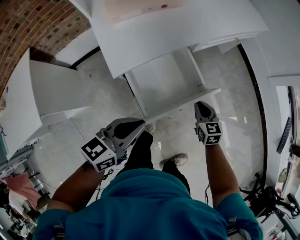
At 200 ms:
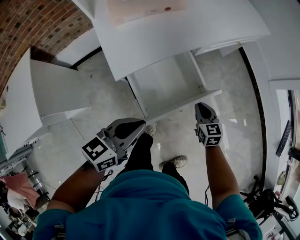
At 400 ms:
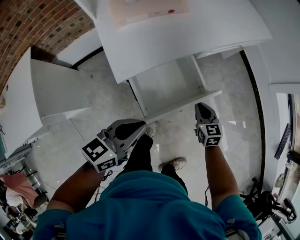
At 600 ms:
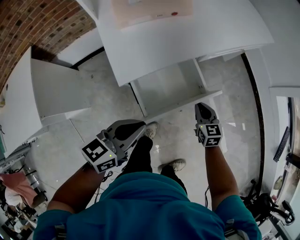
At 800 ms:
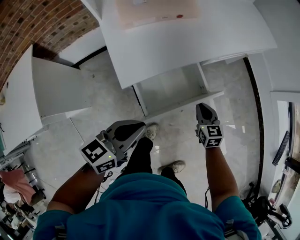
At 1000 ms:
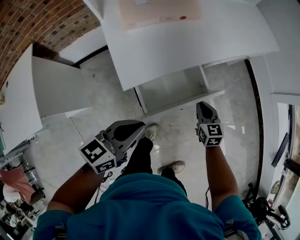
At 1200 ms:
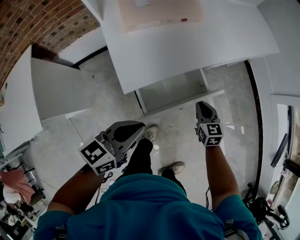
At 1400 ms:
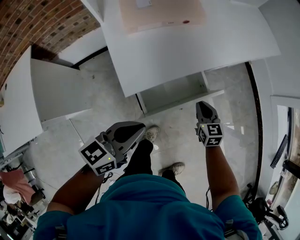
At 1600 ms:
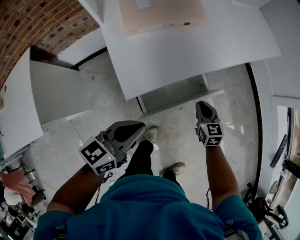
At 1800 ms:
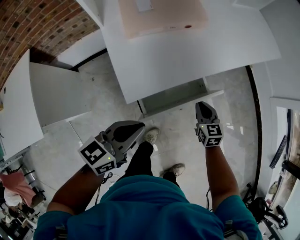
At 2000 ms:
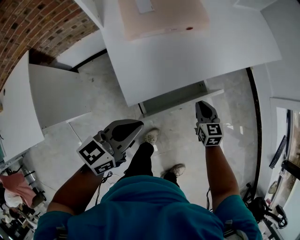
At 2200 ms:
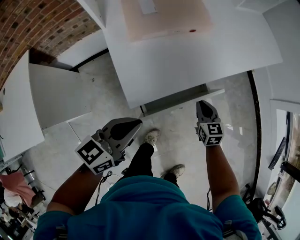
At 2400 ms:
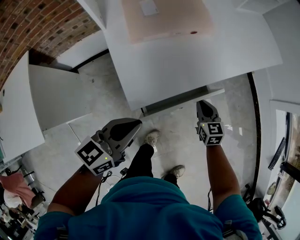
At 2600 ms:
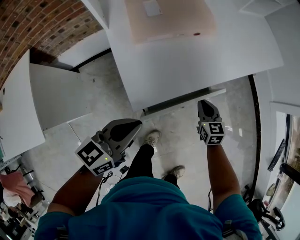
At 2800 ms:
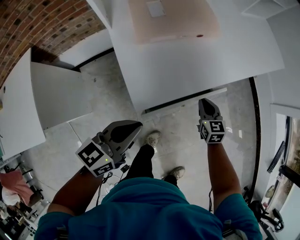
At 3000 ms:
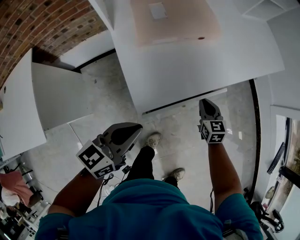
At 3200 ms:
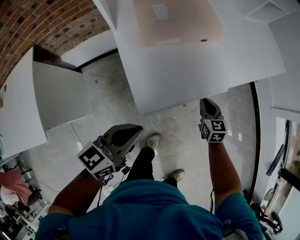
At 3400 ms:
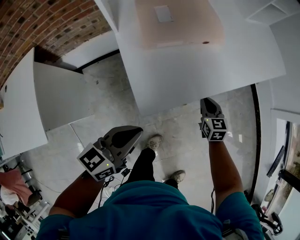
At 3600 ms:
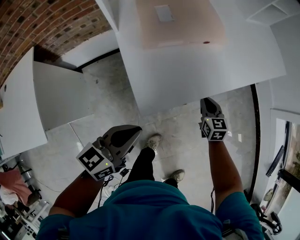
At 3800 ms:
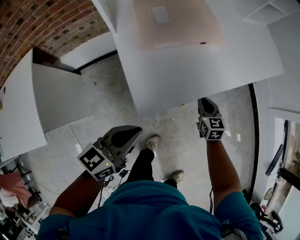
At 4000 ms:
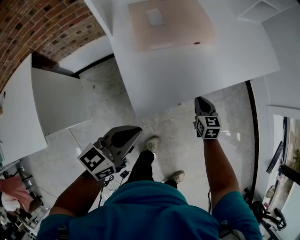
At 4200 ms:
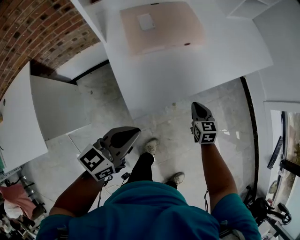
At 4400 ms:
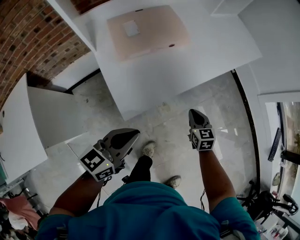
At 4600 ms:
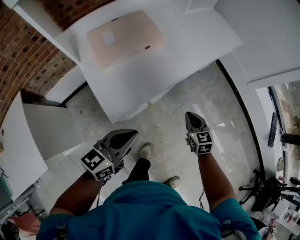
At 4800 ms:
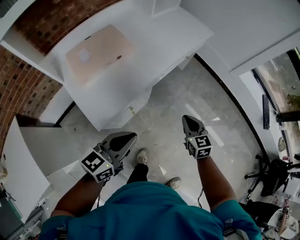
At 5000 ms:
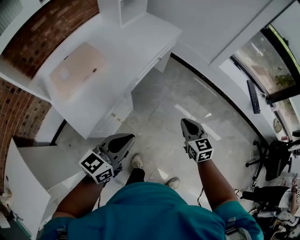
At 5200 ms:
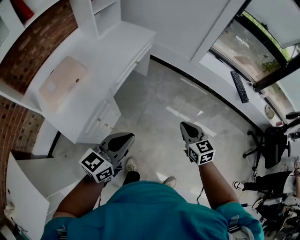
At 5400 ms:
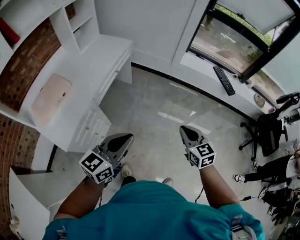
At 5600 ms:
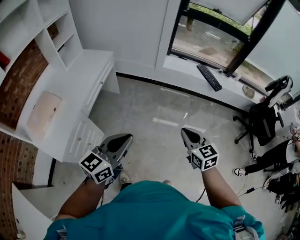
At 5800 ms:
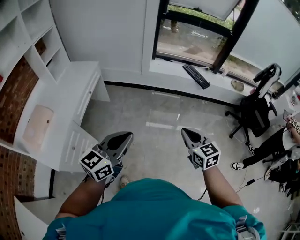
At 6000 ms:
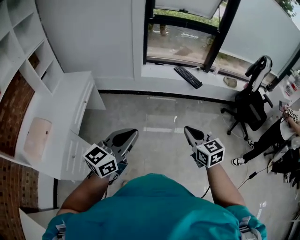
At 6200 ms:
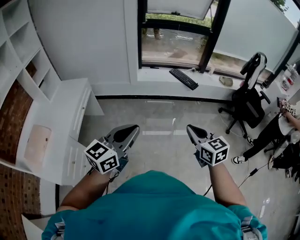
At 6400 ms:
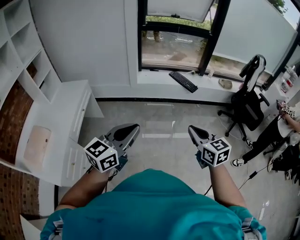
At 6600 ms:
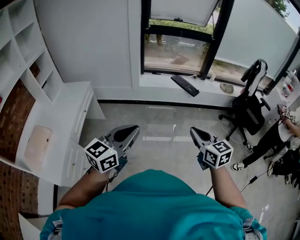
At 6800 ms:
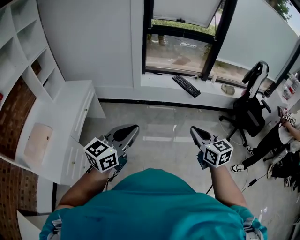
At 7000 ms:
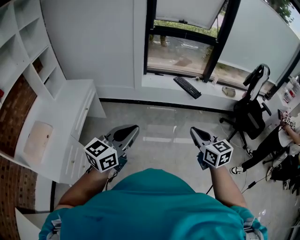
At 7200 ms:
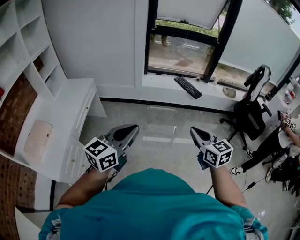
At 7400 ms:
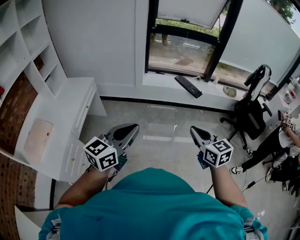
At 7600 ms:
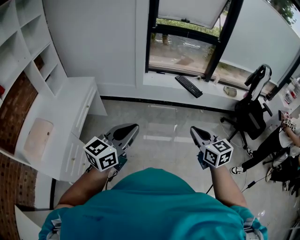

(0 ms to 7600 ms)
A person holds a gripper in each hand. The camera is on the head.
0 ms - 1600 ms: The left gripper goes about 10 cm to the left and forward. Meanwhile the right gripper is displaced forward and to the left by about 10 cm.
1600 ms - 3000 ms: The right gripper is displaced forward by about 5 cm, while the left gripper moves to the left, about 5 cm.
3000 ms - 4600 ms: The left gripper is displaced to the right by some 10 cm, while the right gripper heads to the right, backward and upward, covering some 15 cm.
4600 ms - 6000 ms: The pair of grippers is taken some 50 cm. The right gripper swivels about 40 degrees; the left gripper swivels about 50 degrees.
6000 ms - 7600 ms: The right gripper shifts by about 5 cm.

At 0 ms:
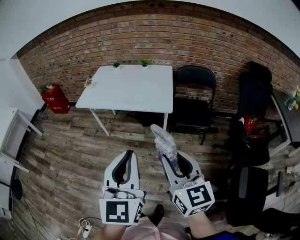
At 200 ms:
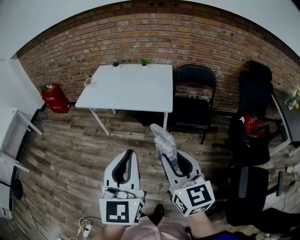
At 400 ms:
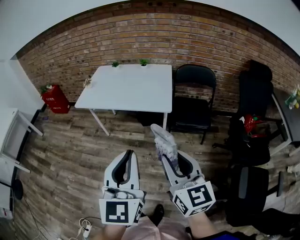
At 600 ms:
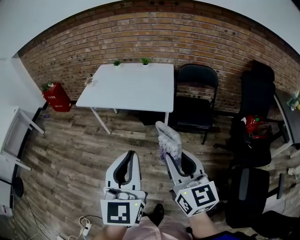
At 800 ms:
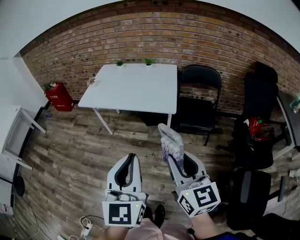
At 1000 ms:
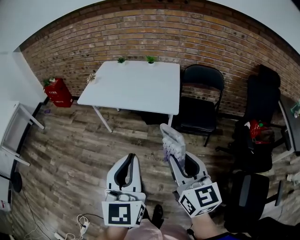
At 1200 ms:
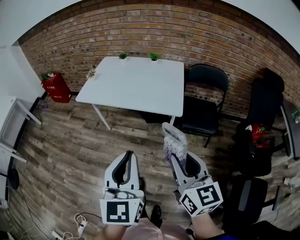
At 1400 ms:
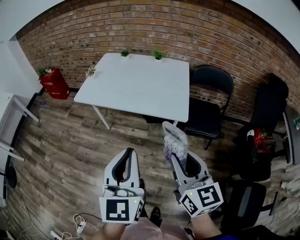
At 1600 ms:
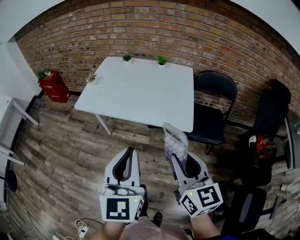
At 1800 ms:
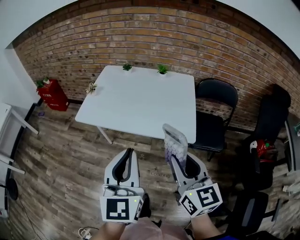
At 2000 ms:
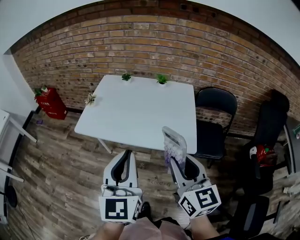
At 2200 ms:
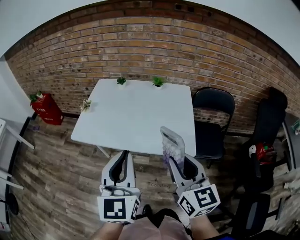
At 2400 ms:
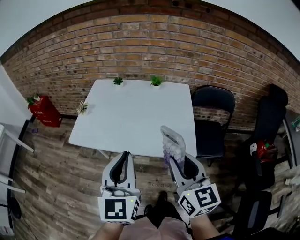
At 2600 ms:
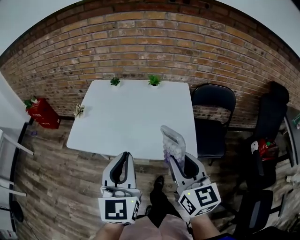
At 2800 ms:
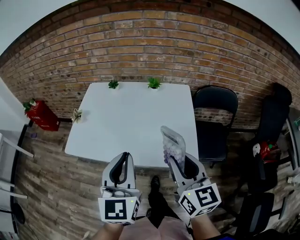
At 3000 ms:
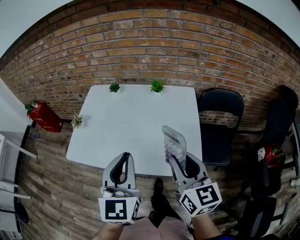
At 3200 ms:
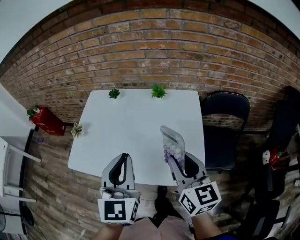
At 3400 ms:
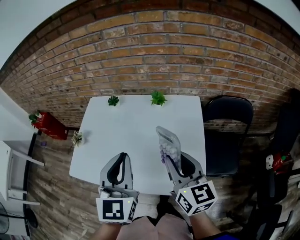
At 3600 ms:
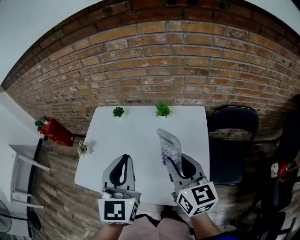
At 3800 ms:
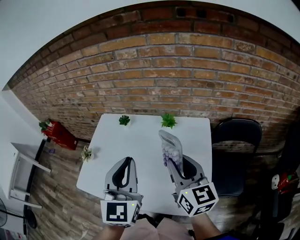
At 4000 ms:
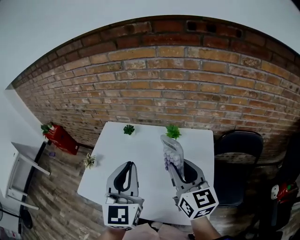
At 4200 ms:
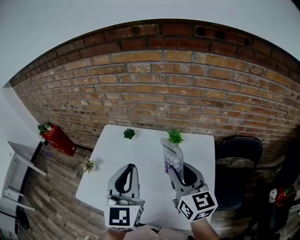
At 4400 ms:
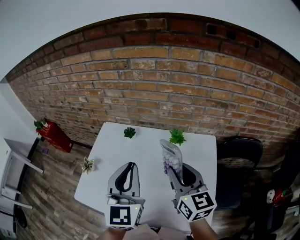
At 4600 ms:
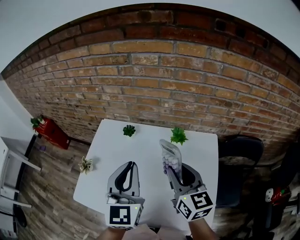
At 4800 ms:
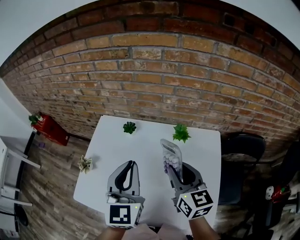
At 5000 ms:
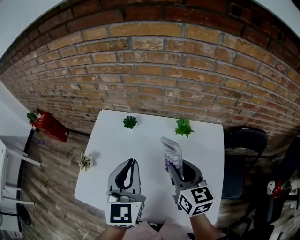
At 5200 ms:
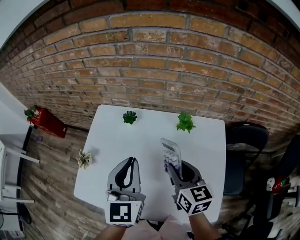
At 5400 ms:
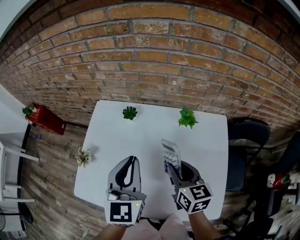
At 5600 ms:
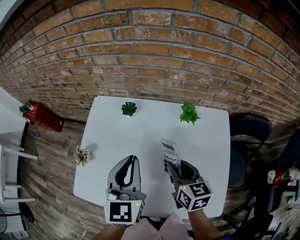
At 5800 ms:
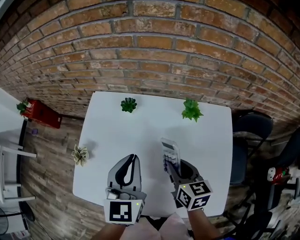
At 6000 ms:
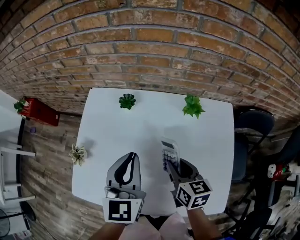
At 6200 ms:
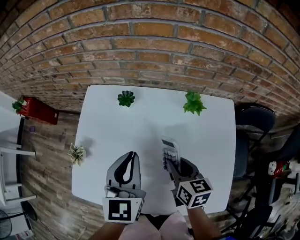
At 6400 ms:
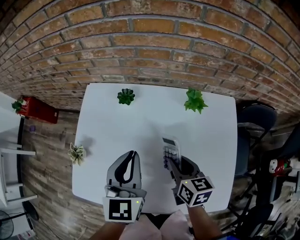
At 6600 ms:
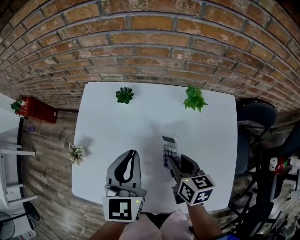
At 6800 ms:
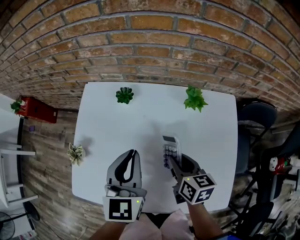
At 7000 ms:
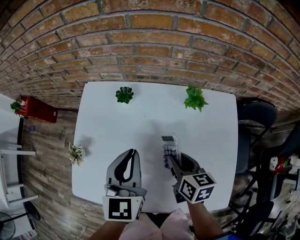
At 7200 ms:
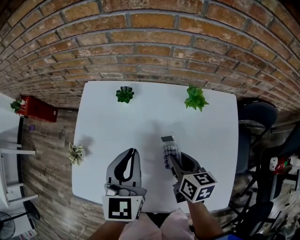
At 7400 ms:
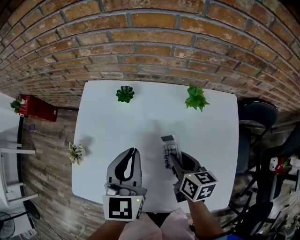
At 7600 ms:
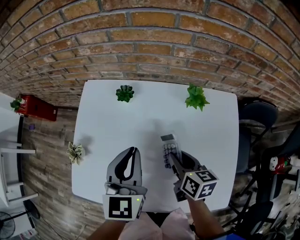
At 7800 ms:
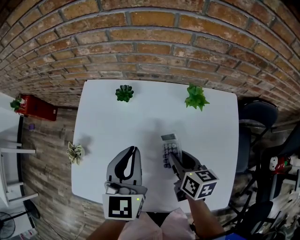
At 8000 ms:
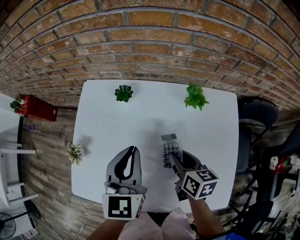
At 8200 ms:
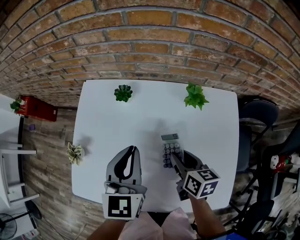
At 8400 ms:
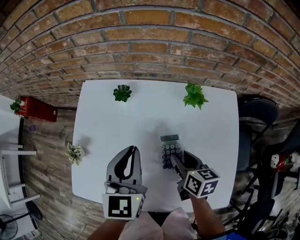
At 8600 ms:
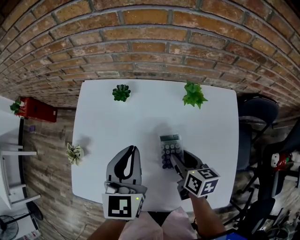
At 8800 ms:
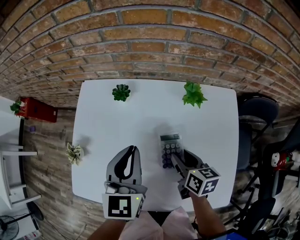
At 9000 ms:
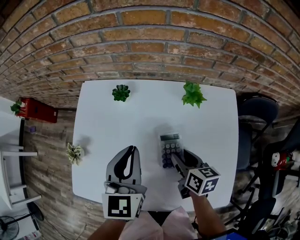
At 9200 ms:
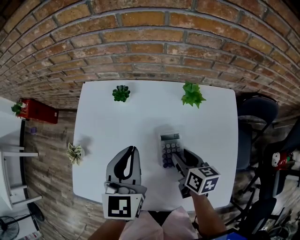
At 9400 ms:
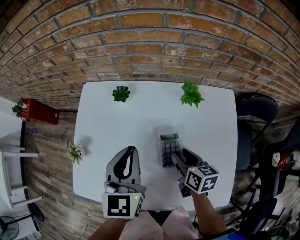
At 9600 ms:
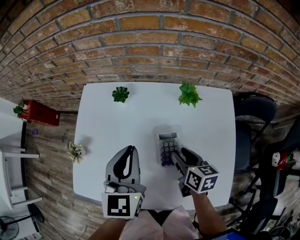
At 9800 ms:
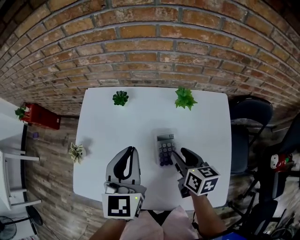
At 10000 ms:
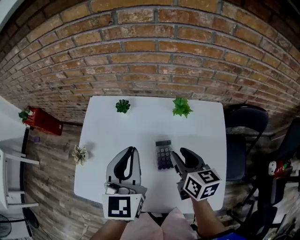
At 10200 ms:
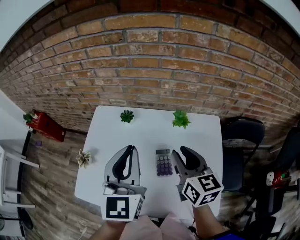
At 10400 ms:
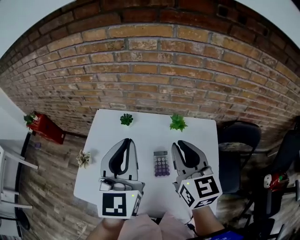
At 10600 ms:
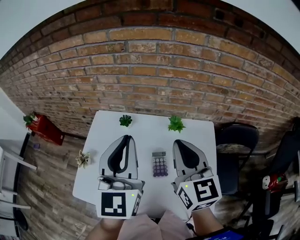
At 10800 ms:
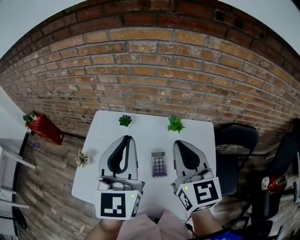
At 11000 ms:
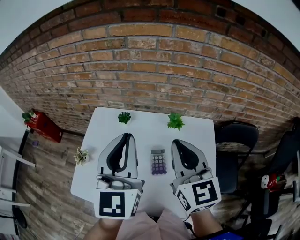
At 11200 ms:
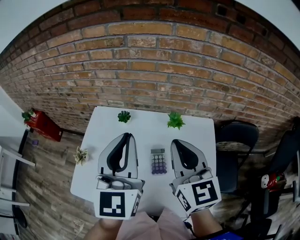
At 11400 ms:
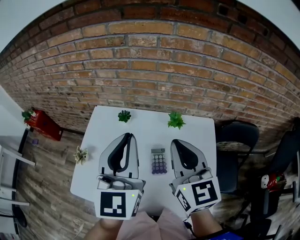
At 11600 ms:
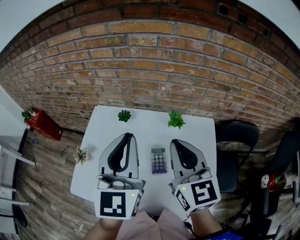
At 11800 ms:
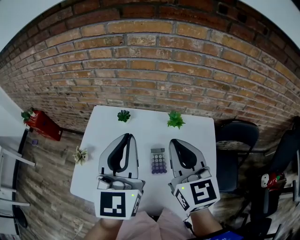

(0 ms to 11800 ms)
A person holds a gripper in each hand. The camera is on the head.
0 ms - 1400 ms: The two grippers go about 15 cm forward.
1400 ms - 3000 ms: Both grippers move forward, about 35 cm.
3000 ms - 4400 ms: Both grippers travel together forward, roughly 25 cm.
4400 ms - 6000 ms: The left gripper moves downward and forward, roughly 15 cm; the right gripper moves downward, roughly 20 cm, and rotates about 30 degrees.
6000 ms - 8800 ms: The grippers move only a little.
8800 ms - 10400 ms: The grippers both shift upward by about 25 cm. The right gripper rotates some 40 degrees, and closes. Meanwhile the left gripper swivels about 20 degrees.
10400 ms - 11800 ms: The grippers make only small movements.

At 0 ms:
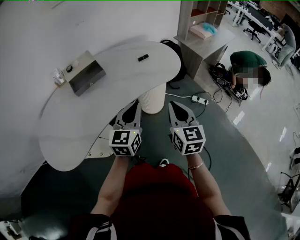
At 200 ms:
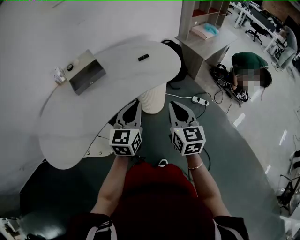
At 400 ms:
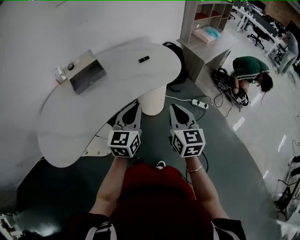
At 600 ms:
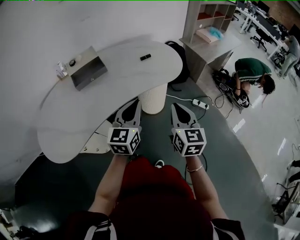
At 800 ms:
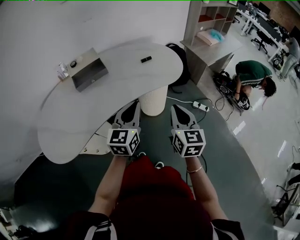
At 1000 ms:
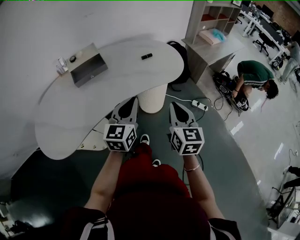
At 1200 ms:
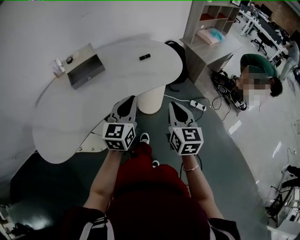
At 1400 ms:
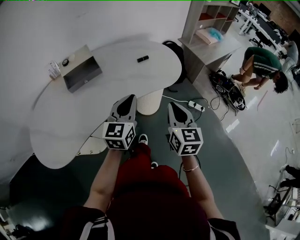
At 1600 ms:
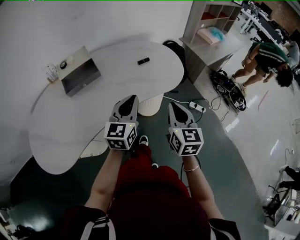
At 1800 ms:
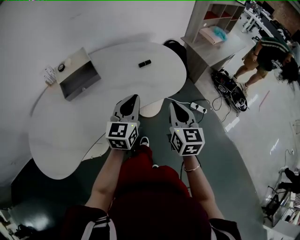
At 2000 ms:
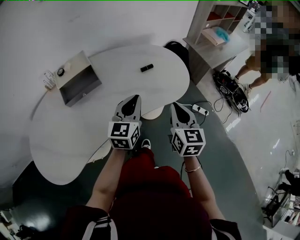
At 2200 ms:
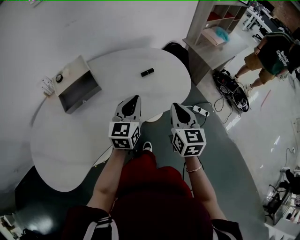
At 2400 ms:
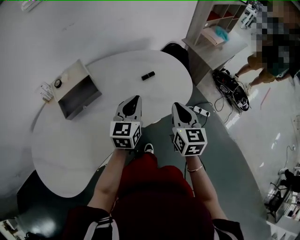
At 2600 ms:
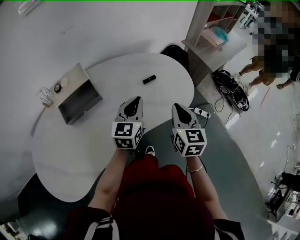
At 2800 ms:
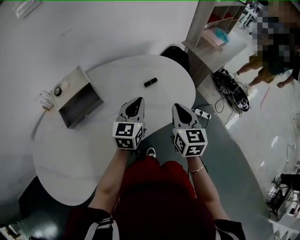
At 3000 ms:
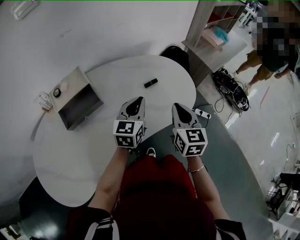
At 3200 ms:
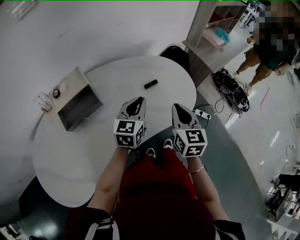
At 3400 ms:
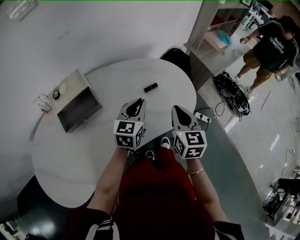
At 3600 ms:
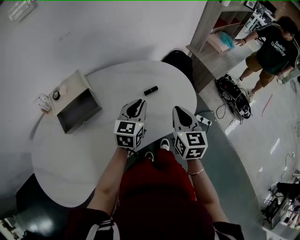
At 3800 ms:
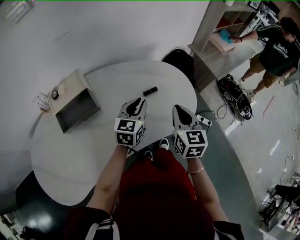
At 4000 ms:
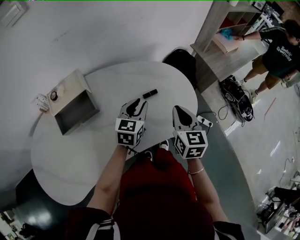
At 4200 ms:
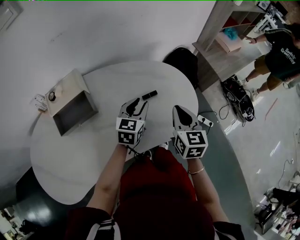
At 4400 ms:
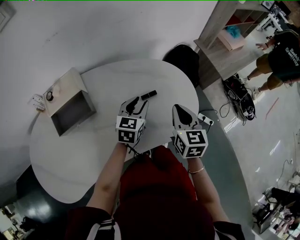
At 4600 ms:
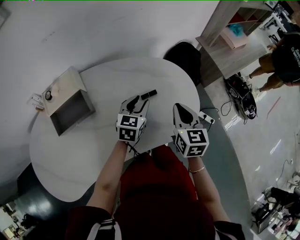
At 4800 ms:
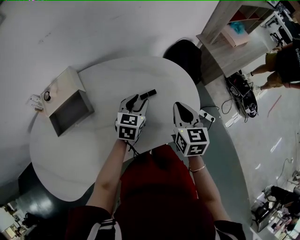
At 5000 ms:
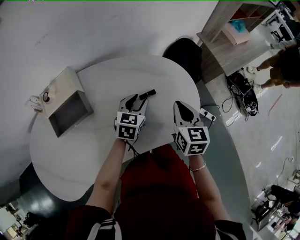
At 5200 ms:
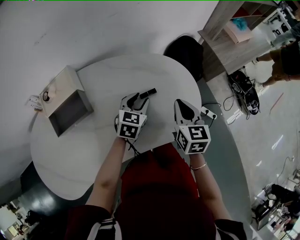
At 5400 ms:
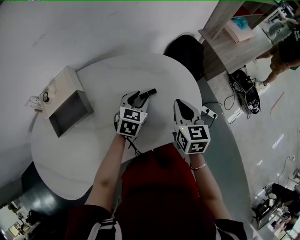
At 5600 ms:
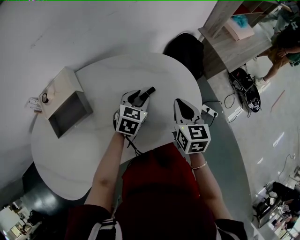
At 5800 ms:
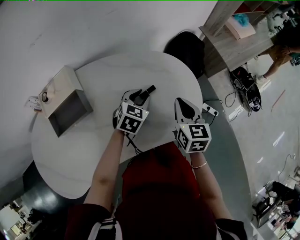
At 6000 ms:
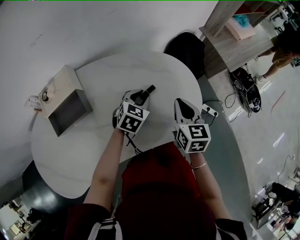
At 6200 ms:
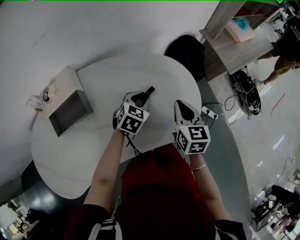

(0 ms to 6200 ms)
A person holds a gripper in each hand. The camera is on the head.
0 ms - 1600 ms: The grippers both shift forward by some 10 cm.
1600 ms - 3200 ms: Both grippers move forward, about 20 cm.
3200 ms - 4600 ms: The left gripper heads downward and forward, covering about 10 cm, and opens up; the right gripper is displaced forward and downward by about 10 cm.
4600 ms - 6200 ms: The left gripper changes its angle by some 20 degrees.
